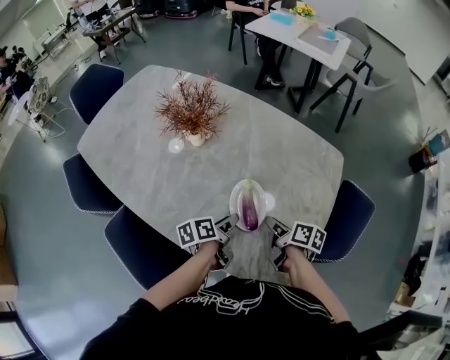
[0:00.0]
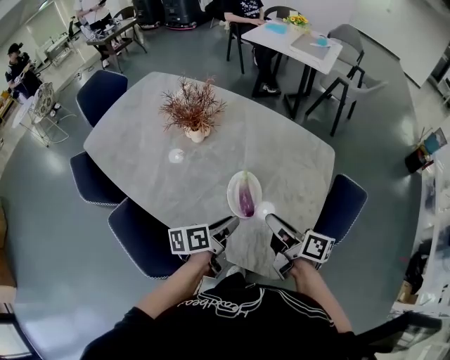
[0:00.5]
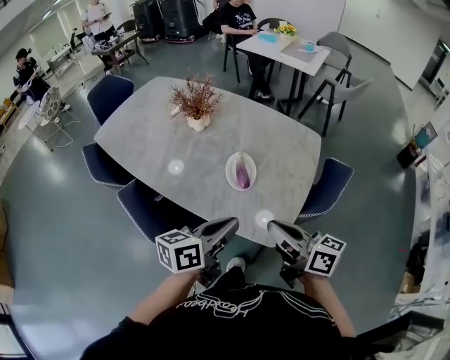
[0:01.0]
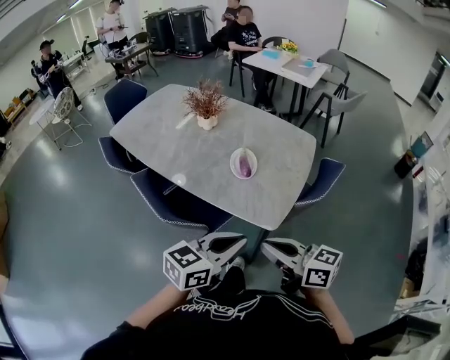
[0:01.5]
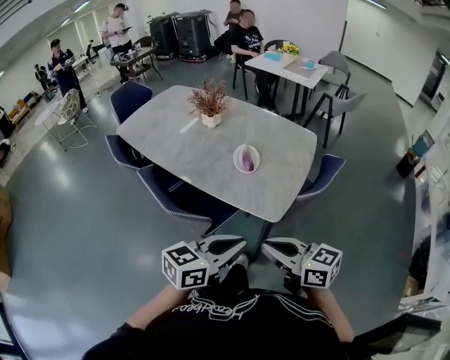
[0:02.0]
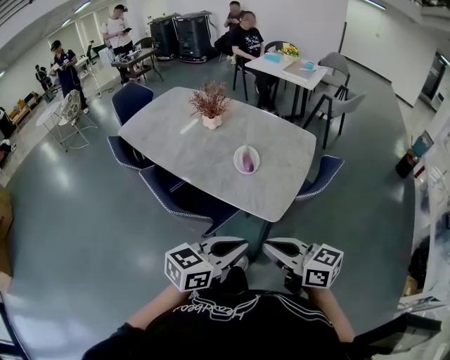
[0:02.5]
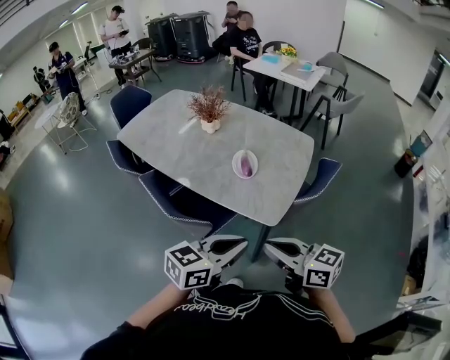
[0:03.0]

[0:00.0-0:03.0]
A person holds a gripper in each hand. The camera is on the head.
0:00.0 to 0:01.5: Both grippers move backward and upward, some 50 cm. The left gripper rotates around the line of its fingers by some 60 degrees, clockwise from behind, and closes its fingers. The right gripper rolls counterclockwise, seen from behind, by some 40 degrees.
0:01.5 to 0:03.0: The right gripper changes place by approximately 5 cm. Meanwhile the left gripper shifts by some 5 cm.

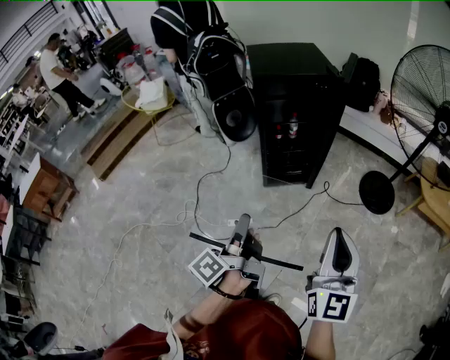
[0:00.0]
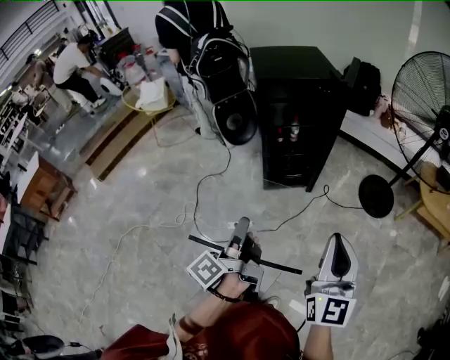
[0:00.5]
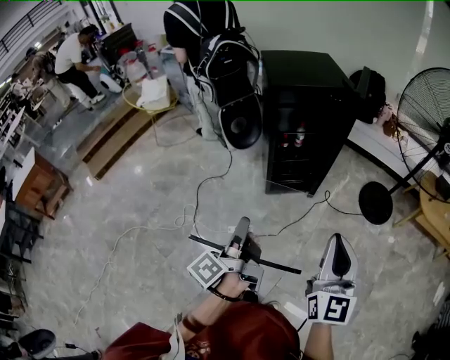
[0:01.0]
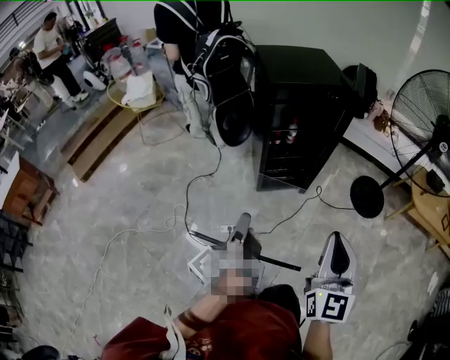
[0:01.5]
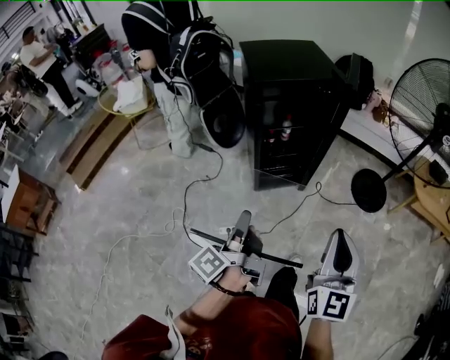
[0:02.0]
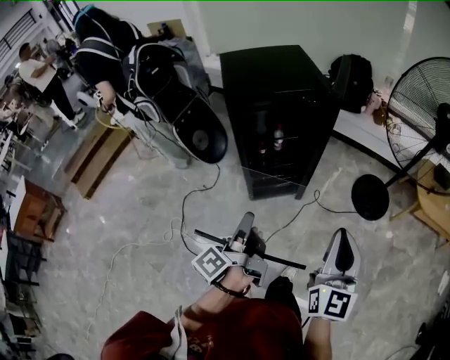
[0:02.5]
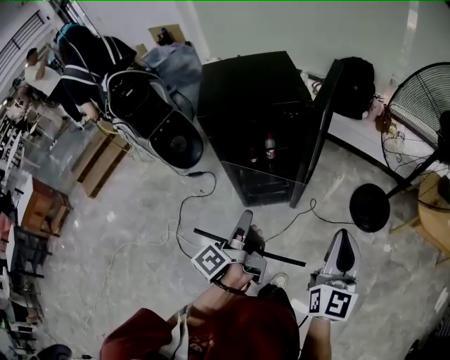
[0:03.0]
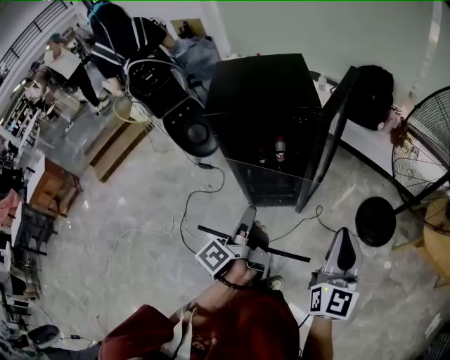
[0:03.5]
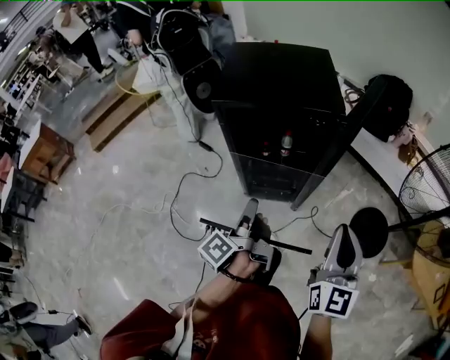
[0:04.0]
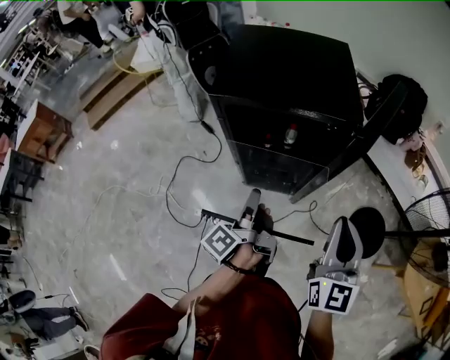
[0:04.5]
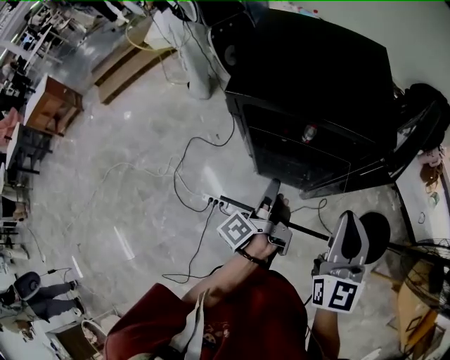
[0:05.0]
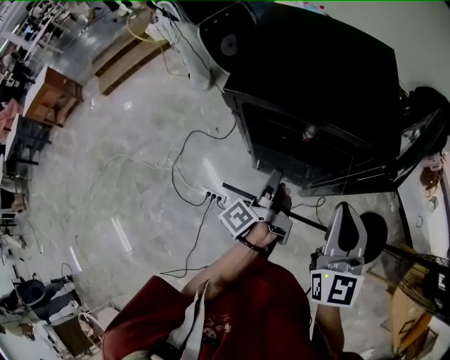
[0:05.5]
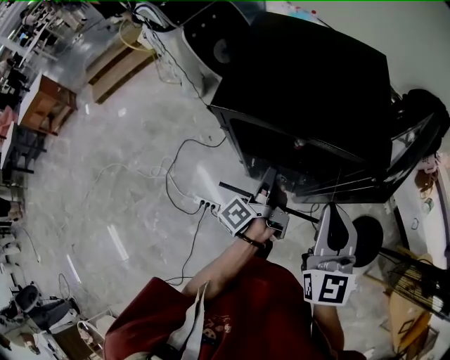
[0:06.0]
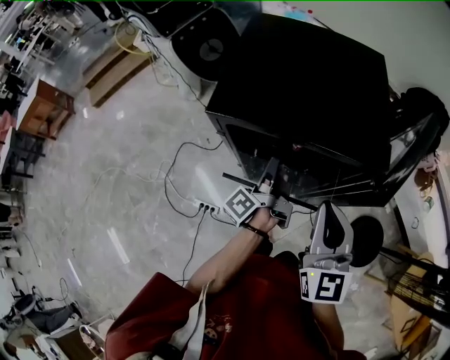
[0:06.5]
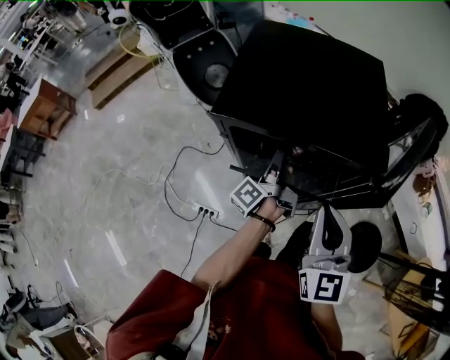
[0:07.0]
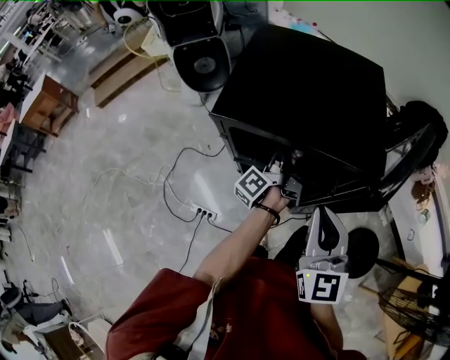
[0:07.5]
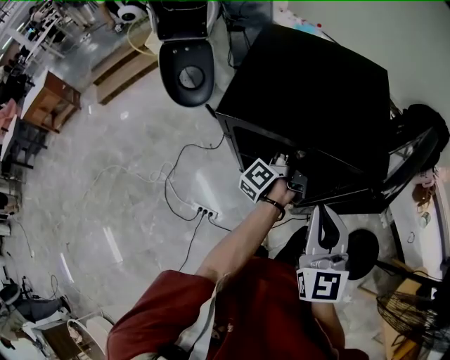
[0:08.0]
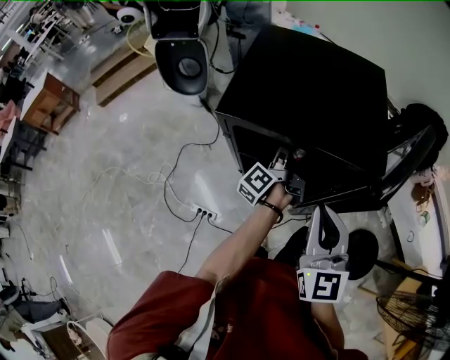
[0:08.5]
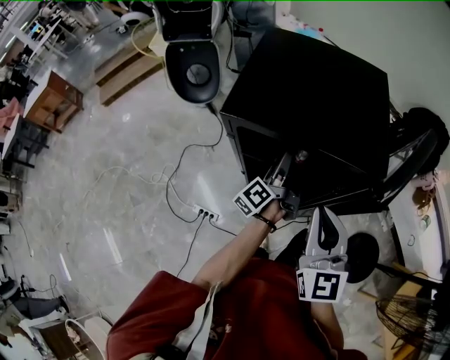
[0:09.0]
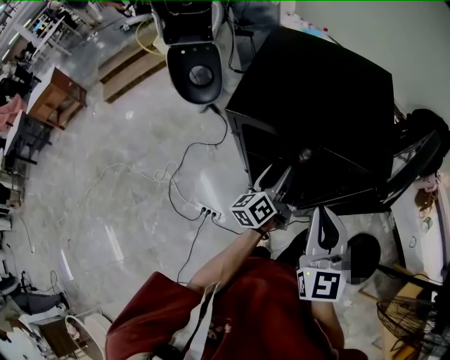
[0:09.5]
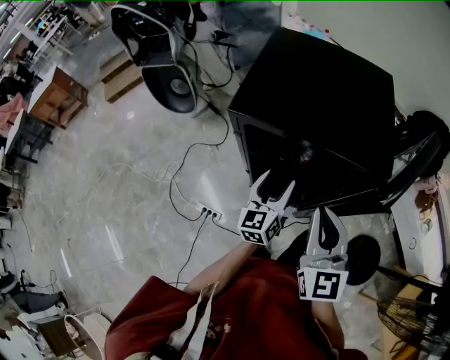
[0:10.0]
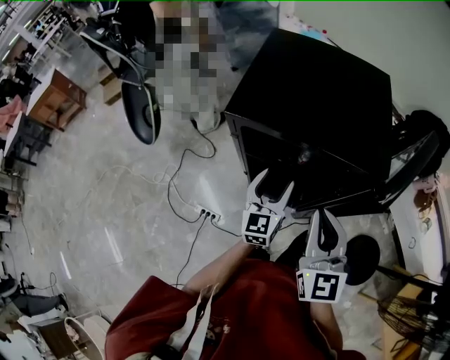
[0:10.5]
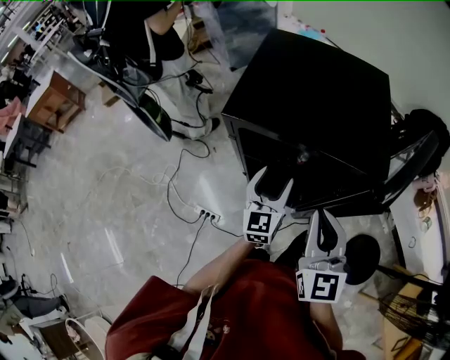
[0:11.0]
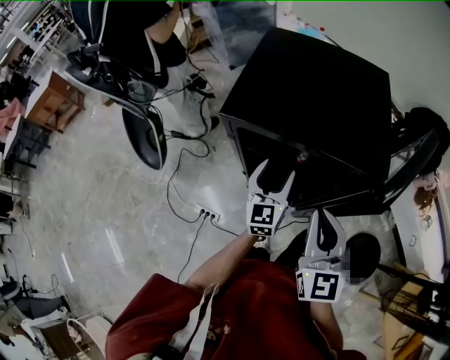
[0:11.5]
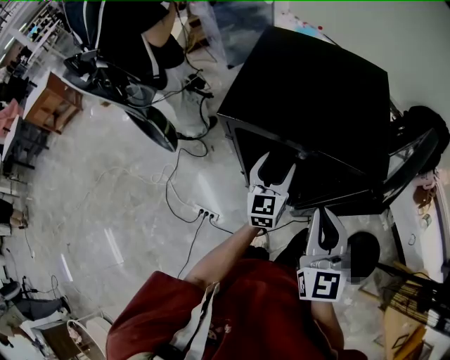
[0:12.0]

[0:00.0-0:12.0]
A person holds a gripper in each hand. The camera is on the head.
0:00.0 to 0:02.0: The grippers both shift forward by some 10 cm.
0:02.0 to 0:04.0: Both grippers travel together forward and to the right, about 30 cm.
0:04.0 to 0:06.0: The left gripper goes roughly 20 cm forward and downward. The right gripper is displaced forward by roughly 20 cm, and turns by approximately 20 degrees.
0:06.0 to 0:08.0: The left gripper heads forward, covering about 10 cm.
0:08.0 to 0:10.0: The left gripper heads backward, covering approximately 10 cm, rolls clockwise, seen from behind, by about 60 degrees, and opens.
0:10.0 to 0:12.0: The left gripper heads forward, covering about 5 cm.

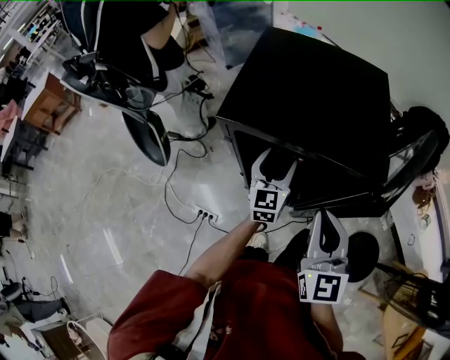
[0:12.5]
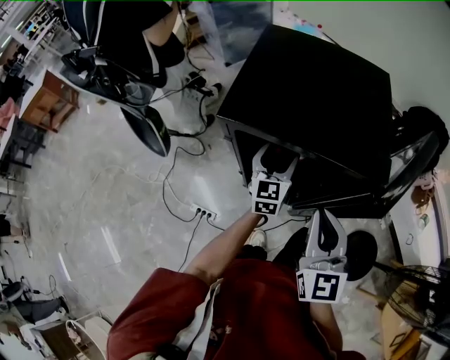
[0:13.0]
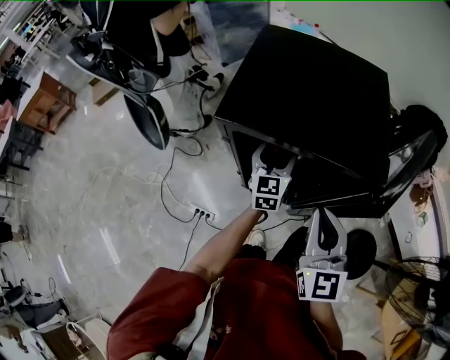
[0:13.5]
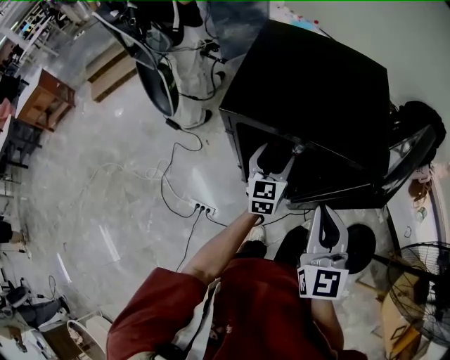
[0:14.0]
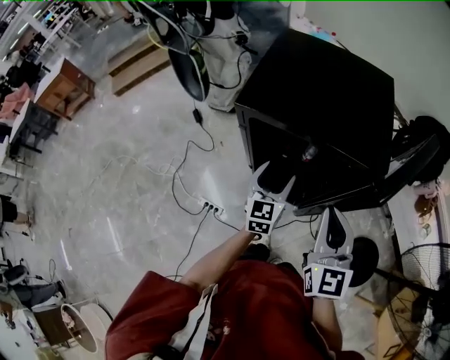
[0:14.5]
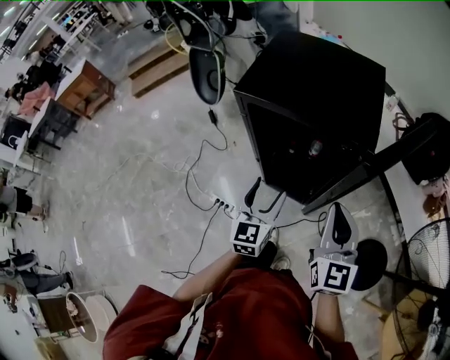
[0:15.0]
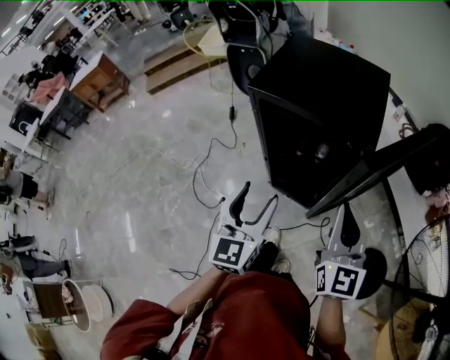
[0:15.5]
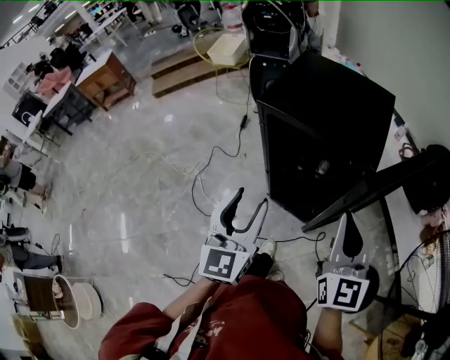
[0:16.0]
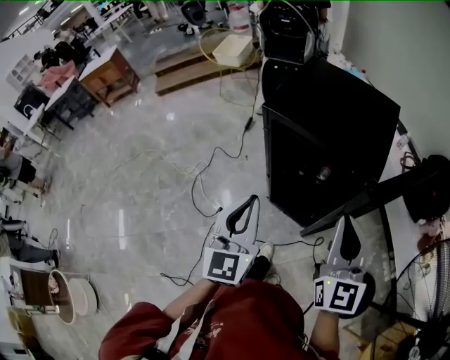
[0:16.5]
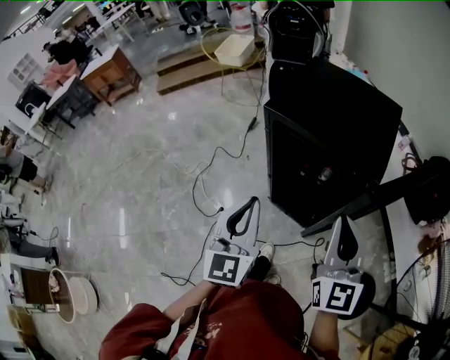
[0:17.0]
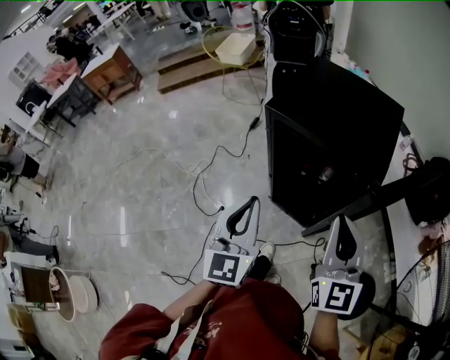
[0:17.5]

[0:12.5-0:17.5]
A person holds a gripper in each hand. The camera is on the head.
0:12.5 to 0:15.0: The left gripper heads backward, covering about 20 cm. The right gripper travels backward and to the right by approximately 10 cm.
0:15.0 to 0:17.5: The right gripper goes roughly 10 cm upward, while the left gripper is displaced upward and to the left by some 15 cm, and closes.

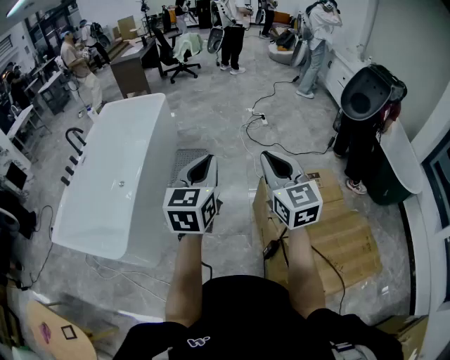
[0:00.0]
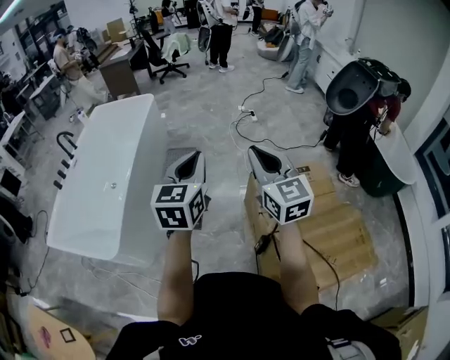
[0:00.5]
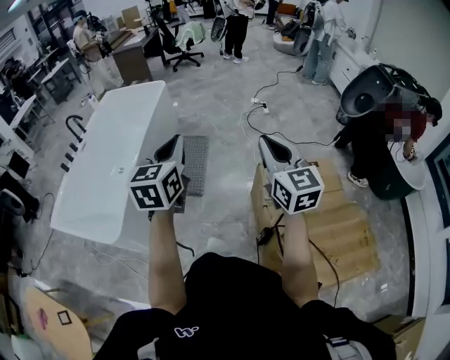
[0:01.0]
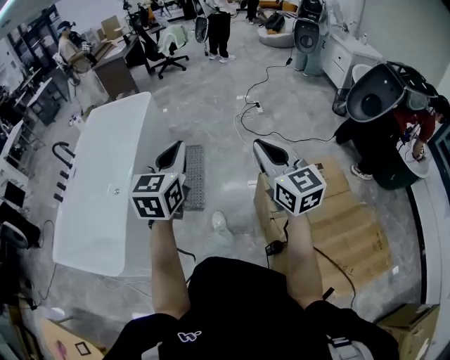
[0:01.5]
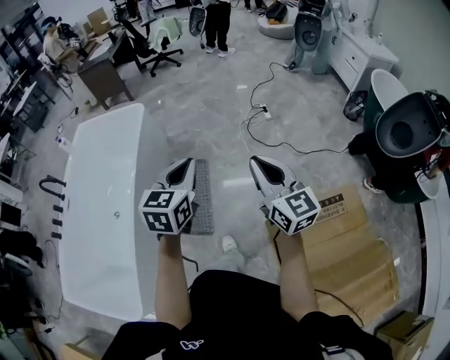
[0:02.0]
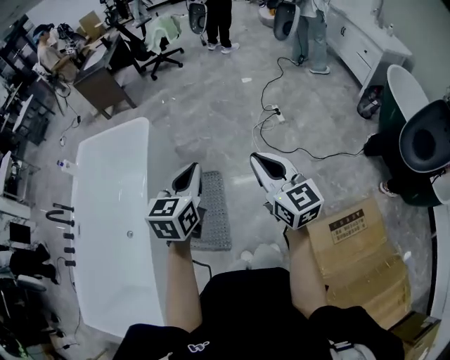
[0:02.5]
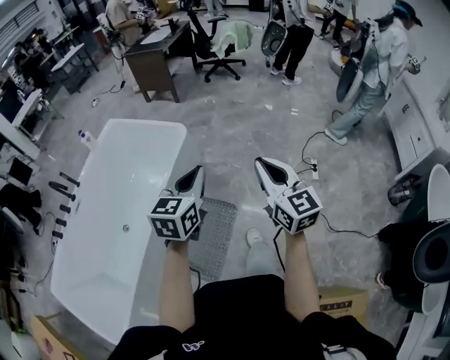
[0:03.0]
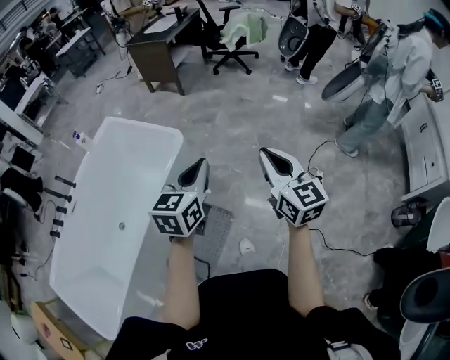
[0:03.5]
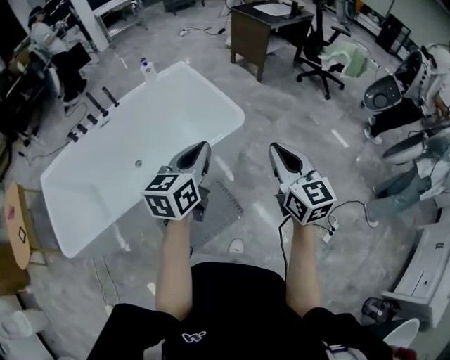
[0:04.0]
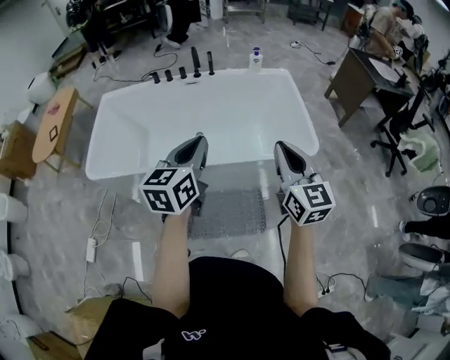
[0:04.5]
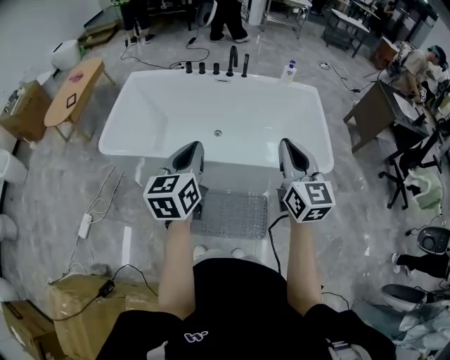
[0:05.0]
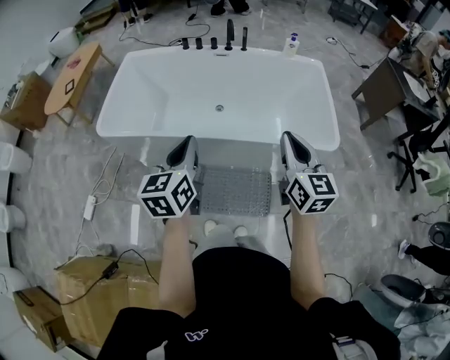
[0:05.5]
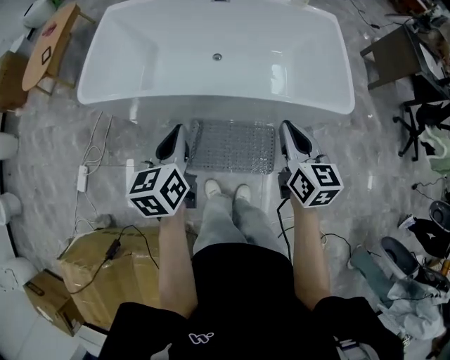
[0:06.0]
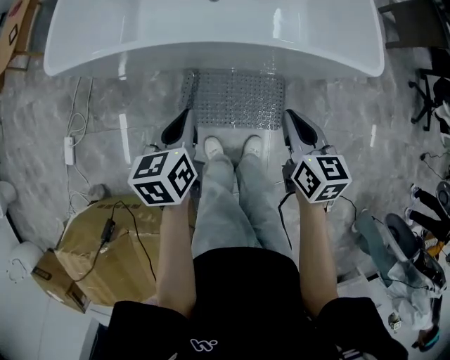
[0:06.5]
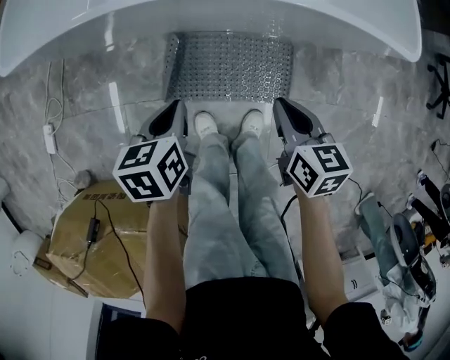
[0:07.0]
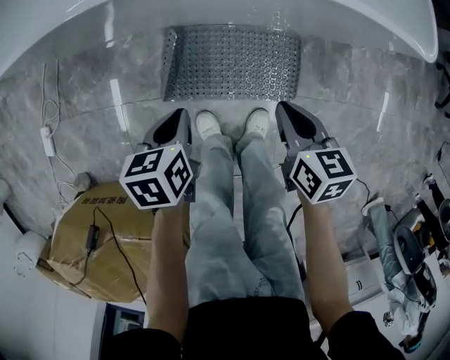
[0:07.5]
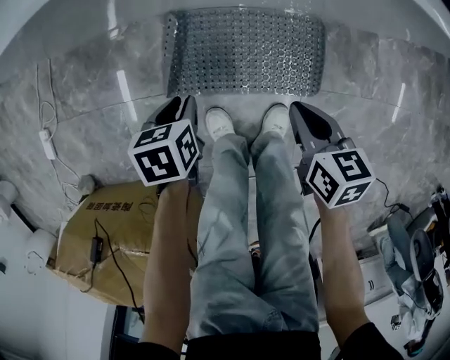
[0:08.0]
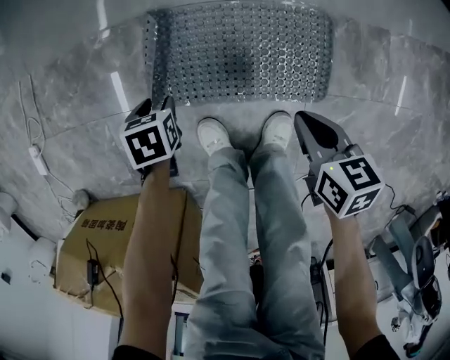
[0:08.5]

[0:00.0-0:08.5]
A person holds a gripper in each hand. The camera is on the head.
0:00.0 to 0:02.0: The two grippers travel together, forward, roughly 40 cm.
0:02.0 to 0:04.0: The pair of grippers is taken approximately 60 cm. The left gripper swivels roughly 60 degrees, while the right gripper swivels roughly 50 degrees.
0:04.0 to 0:06.5: The right gripper moves about 40 cm, and points its fingers roughly 30 degrees further downward. Meanwhile the left gripper ends up approximately 50 cm from where it was, and changes its angle by roughly 60 degrees.
0:06.5 to 0:08.5: Both grippers travel together downward, approximately 50 cm. The right gripper swivels roughly 30 degrees, while the left gripper angles its fingers downward, by some 50 degrees, and opens up.
